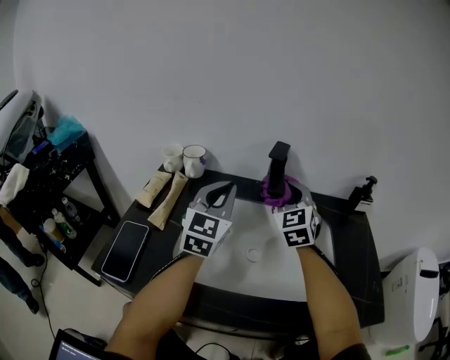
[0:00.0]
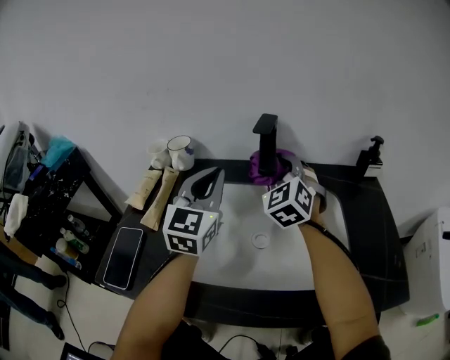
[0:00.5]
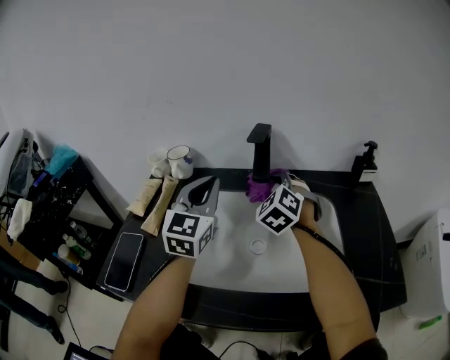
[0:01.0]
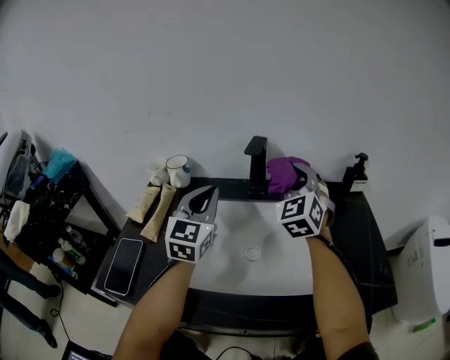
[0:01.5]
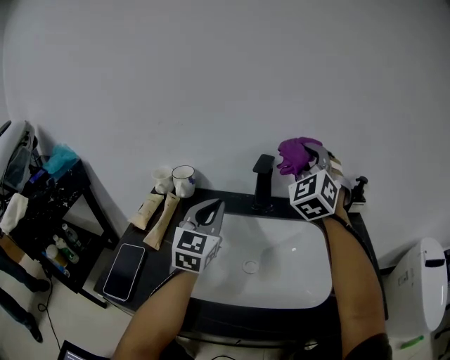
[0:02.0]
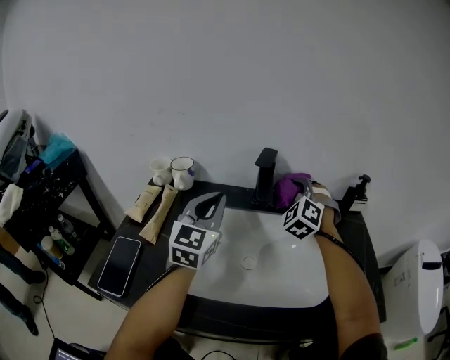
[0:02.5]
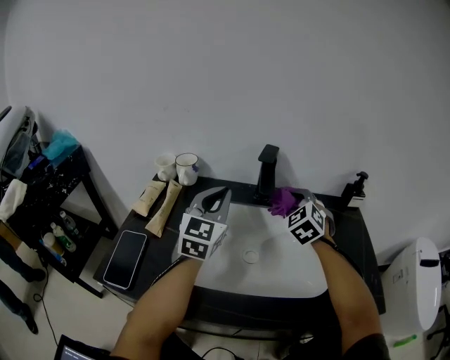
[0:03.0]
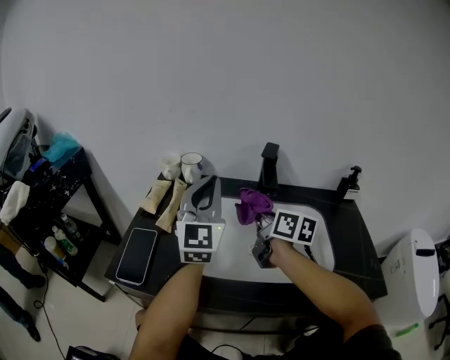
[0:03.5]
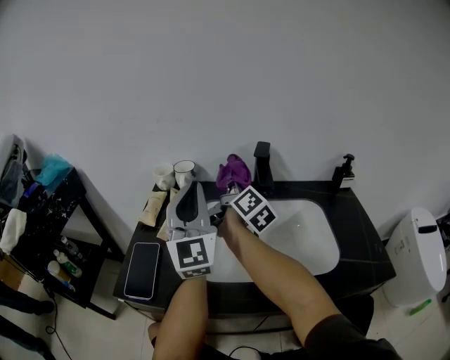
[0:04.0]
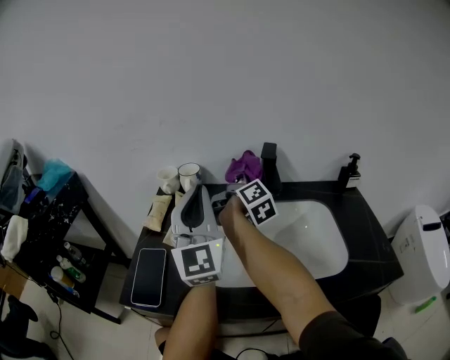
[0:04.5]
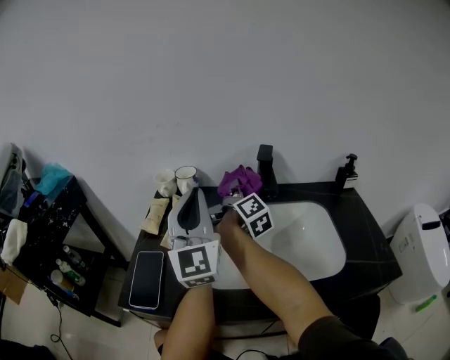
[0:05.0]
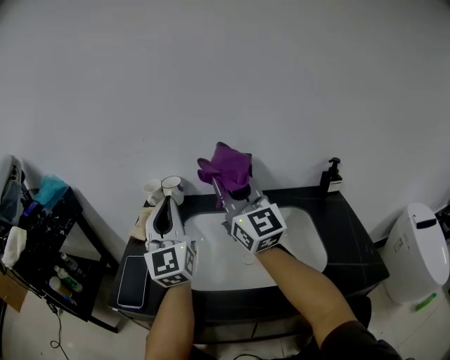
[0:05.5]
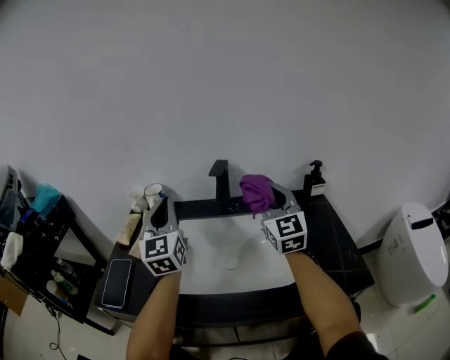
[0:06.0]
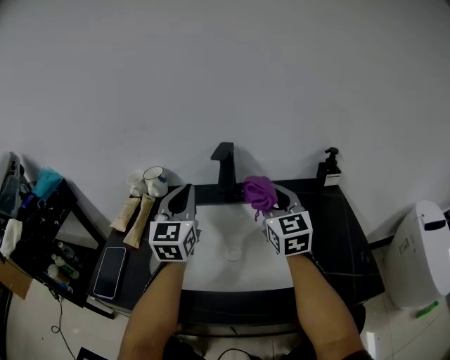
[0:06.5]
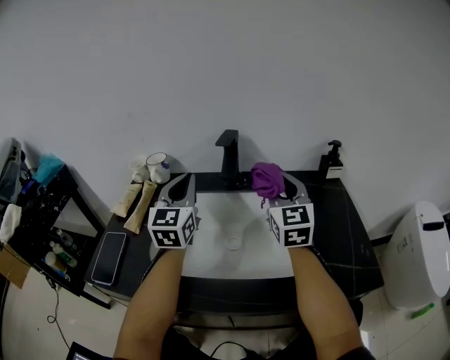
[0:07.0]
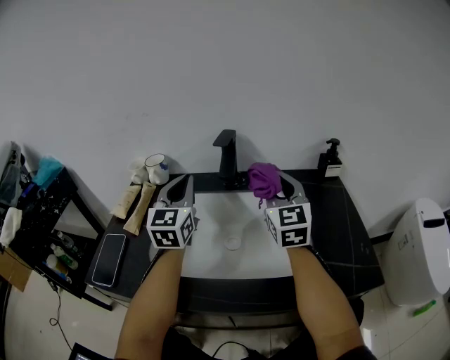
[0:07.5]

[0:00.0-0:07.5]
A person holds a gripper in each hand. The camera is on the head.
0:00.0 to 0:02.0: The right gripper shifts approximately 15 cm upward, and swivels roughly 30 degrees.
0:02.0 to 0:04.0: The left gripper is displaced to the left, backward and upward by roughly 15 cm, and swivels about 30 degrees. The right gripper moves to the left and downward, roughly 20 cm, and rotates around the line of its fingers by some 110 degrees, clockwise from behind.
0:04.0 to 0:05.5: The right gripper shifts some 15 cm upward and backward, and rolls counterclockwise, seen from behind, by approximately 60 degrees.
0:05.5 to 0:07.5: The right gripper heads to the right and downward, covering roughly 25 cm, and rotates approximately 30 degrees. Meanwhile the left gripper goes roughly 15 cm to the right, downward and forward, and rotates approximately 20 degrees.

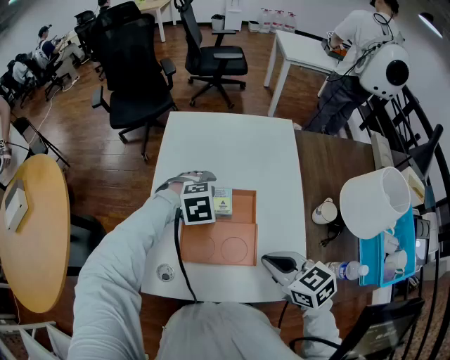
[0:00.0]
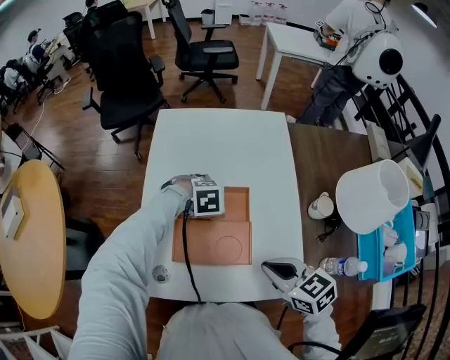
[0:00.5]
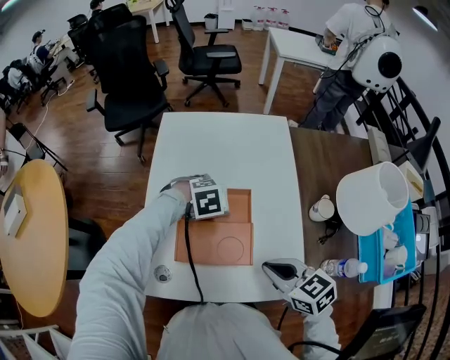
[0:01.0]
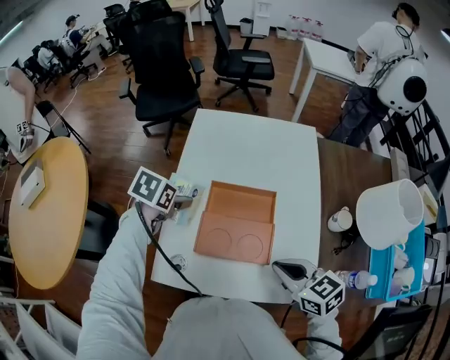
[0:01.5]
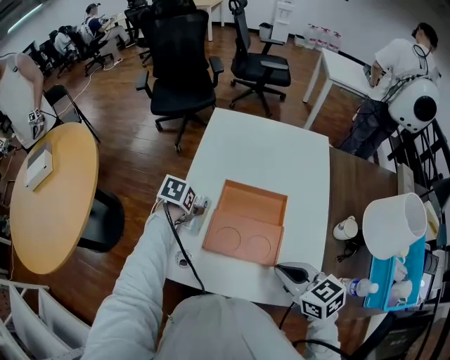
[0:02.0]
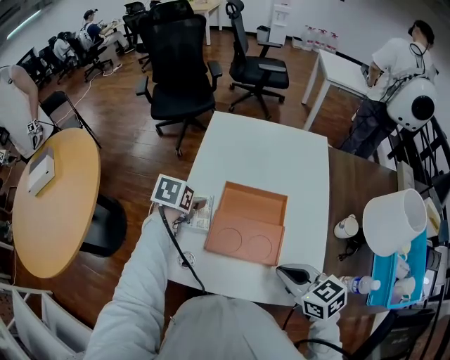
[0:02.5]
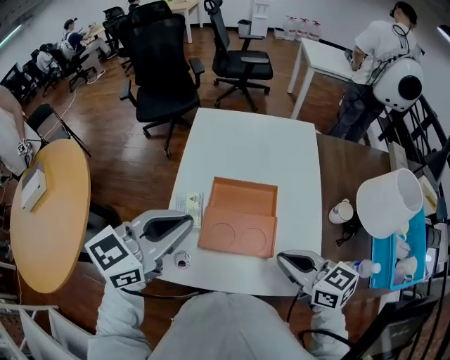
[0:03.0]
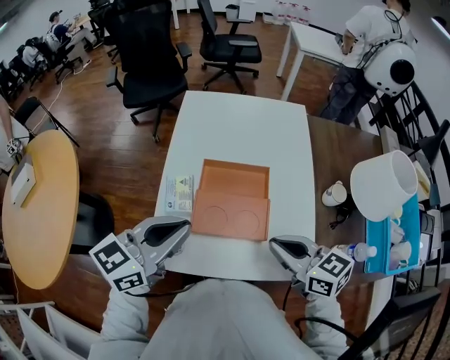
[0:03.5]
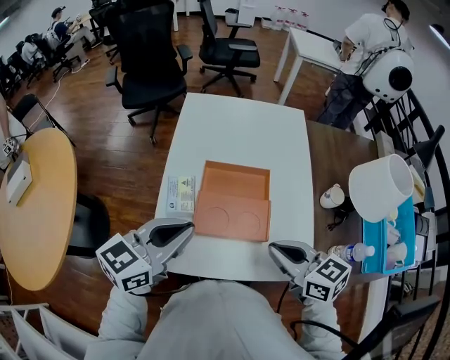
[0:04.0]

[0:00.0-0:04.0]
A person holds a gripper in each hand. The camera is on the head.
0:00.0 to 0:02.0: The left gripper swings up and down, approximately 10 cm each way, with 2 reversals, and twists approximately 80 degrees counterclockwise, seen from behind.
0:02.0 to 0:04.0: The left gripper travels upward and backward by some 25 cm, angles its fingers upward, by about 50 degrees, and closes.

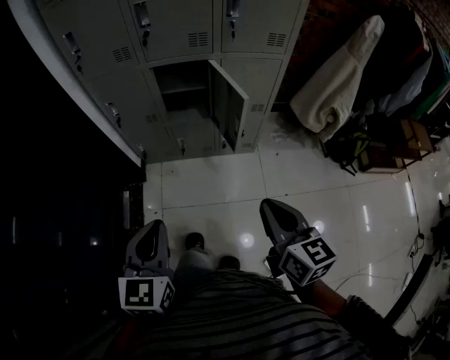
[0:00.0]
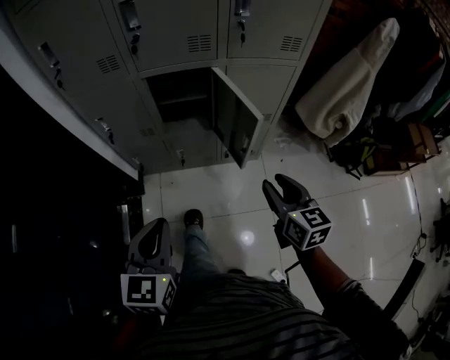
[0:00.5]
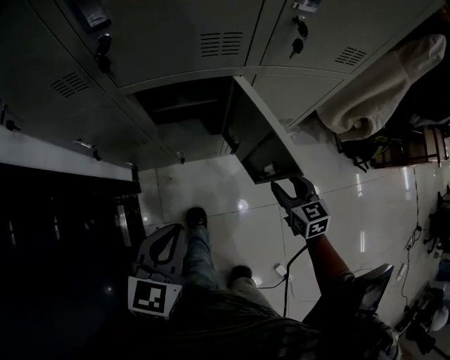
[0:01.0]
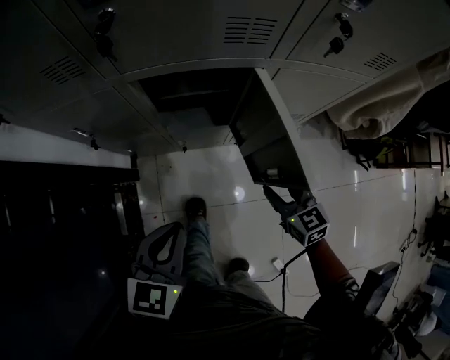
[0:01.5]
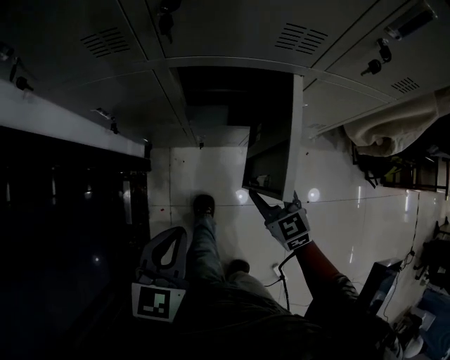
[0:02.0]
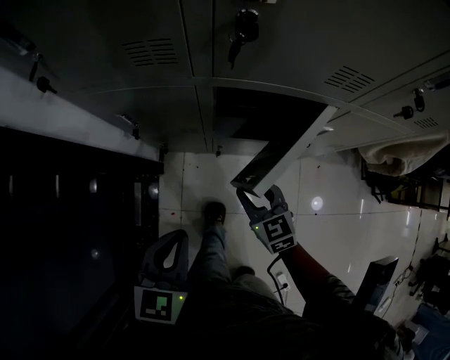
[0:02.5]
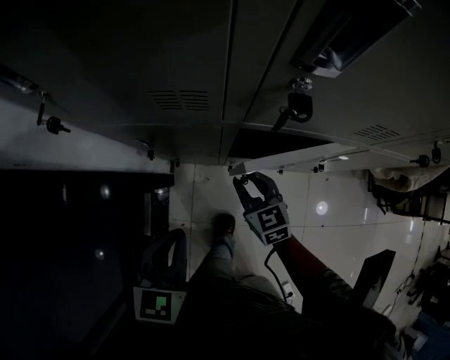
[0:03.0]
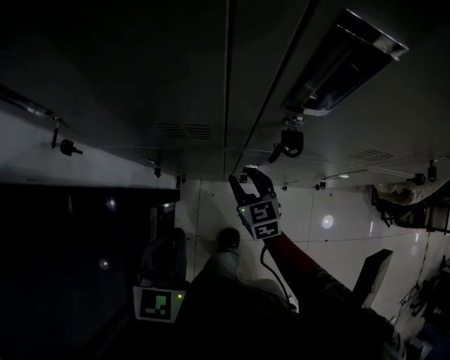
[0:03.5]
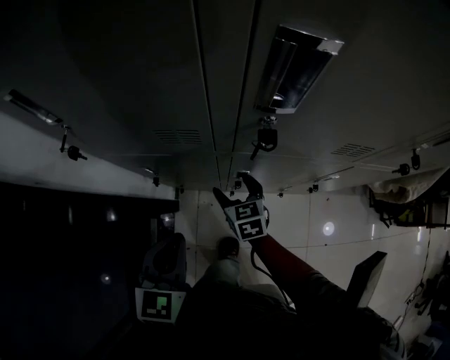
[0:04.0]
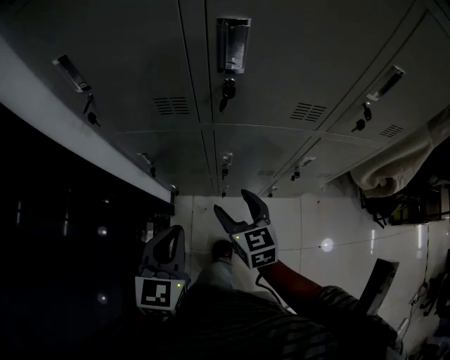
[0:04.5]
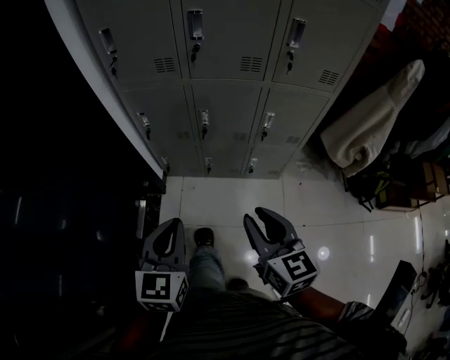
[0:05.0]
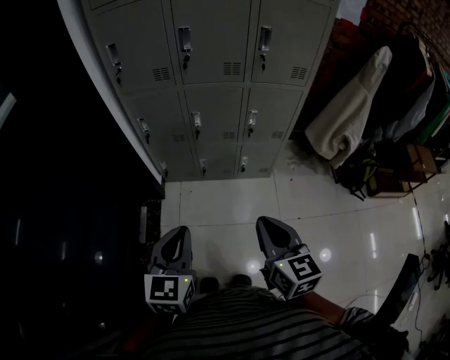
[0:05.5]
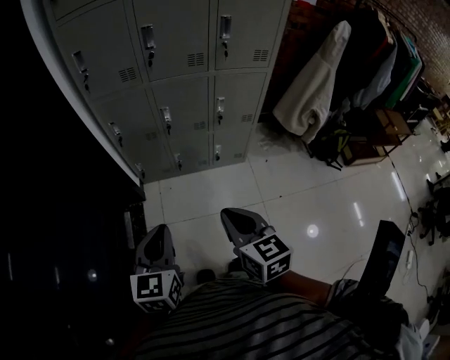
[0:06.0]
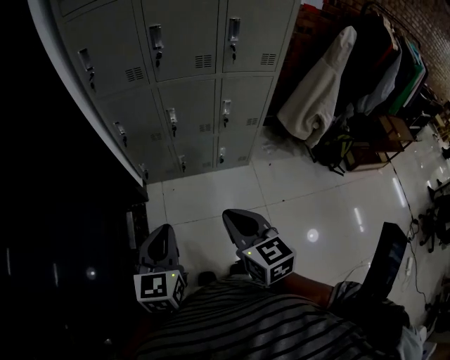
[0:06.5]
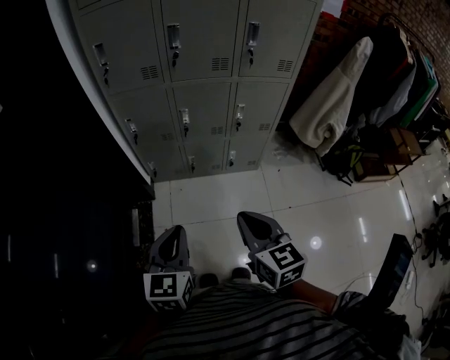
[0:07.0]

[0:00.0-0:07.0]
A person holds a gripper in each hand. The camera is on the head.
0:00.0 to 0:02.0: The grippers both shift forward and downward by about 40 cm. The right gripper turns by some 40 degrees, and opens.
0:02.0 to 0:03.5: The grippers both shift forward and to the left by roughly 25 cm.
0:03.5 to 0:05.0: The right gripper goes about 50 cm backward and upward, and opens and closes again. Meanwhile the left gripper is displaced backward by roughly 35 cm.
0:05.0 to 0:07.0: Both grippers travel together backward, approximately 10 cm.

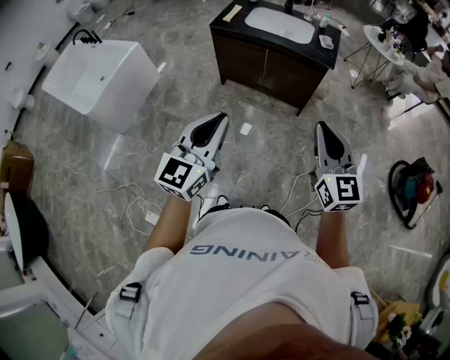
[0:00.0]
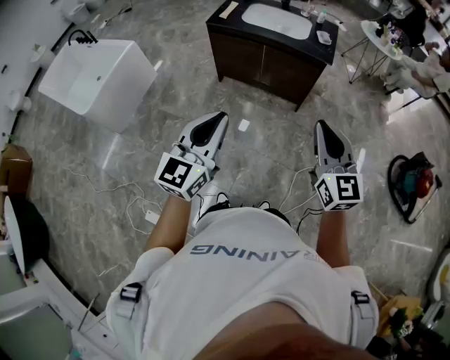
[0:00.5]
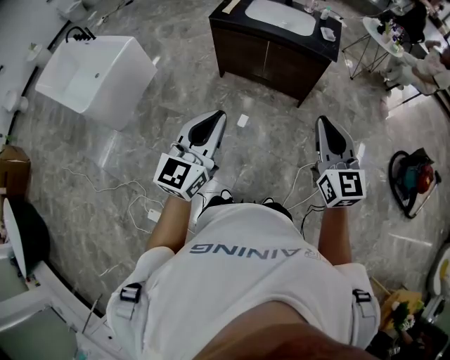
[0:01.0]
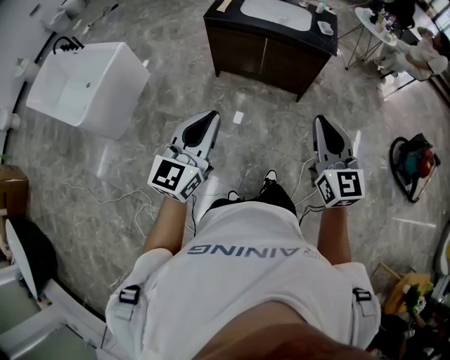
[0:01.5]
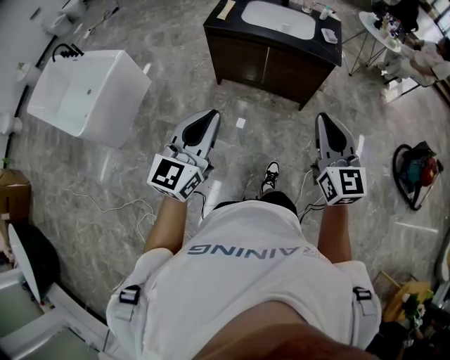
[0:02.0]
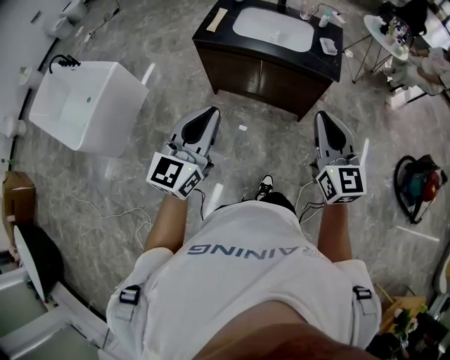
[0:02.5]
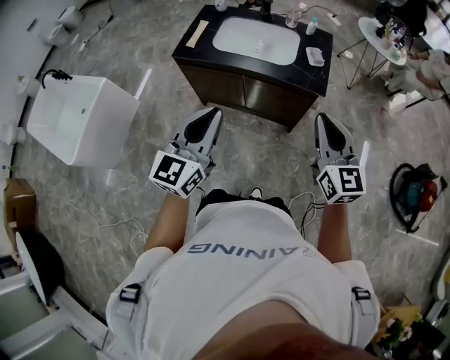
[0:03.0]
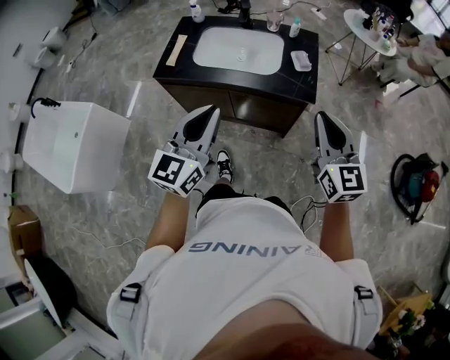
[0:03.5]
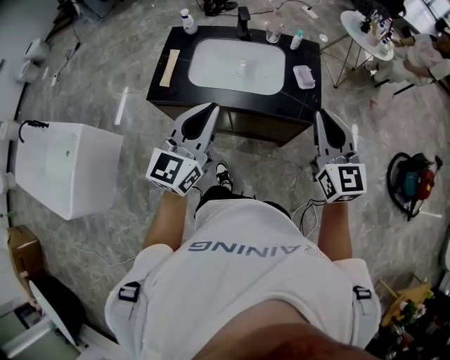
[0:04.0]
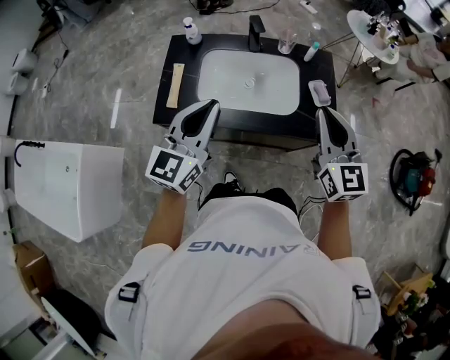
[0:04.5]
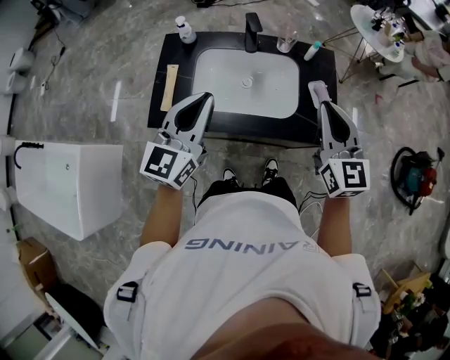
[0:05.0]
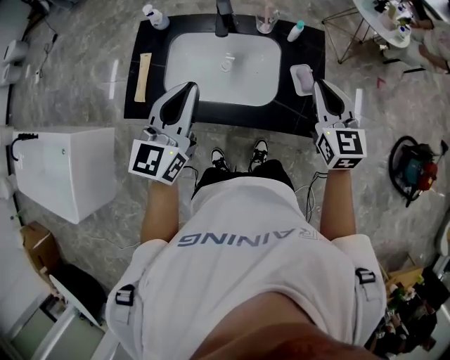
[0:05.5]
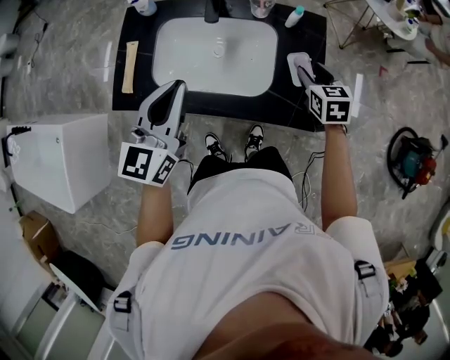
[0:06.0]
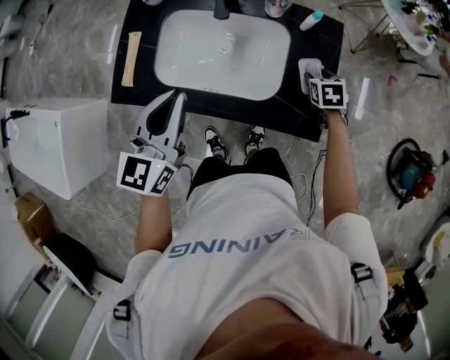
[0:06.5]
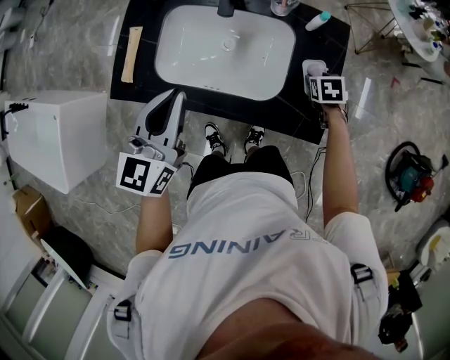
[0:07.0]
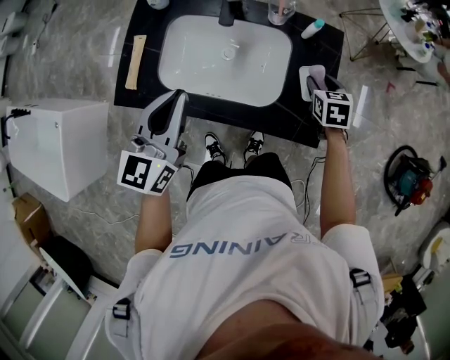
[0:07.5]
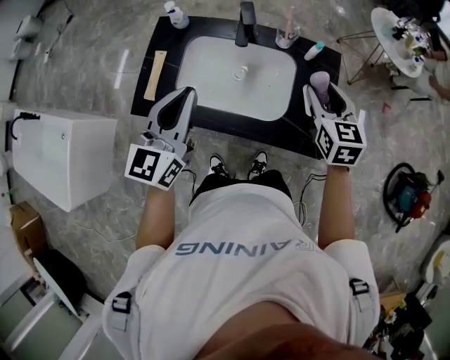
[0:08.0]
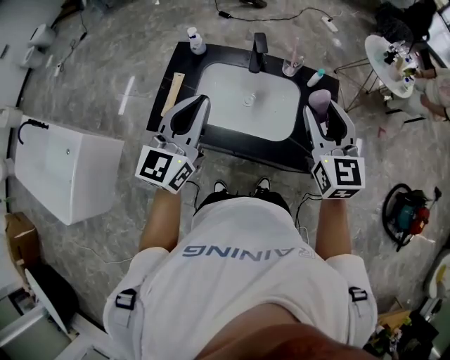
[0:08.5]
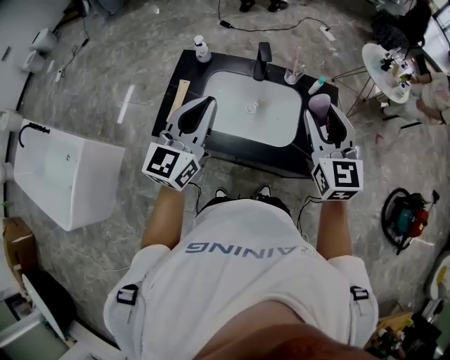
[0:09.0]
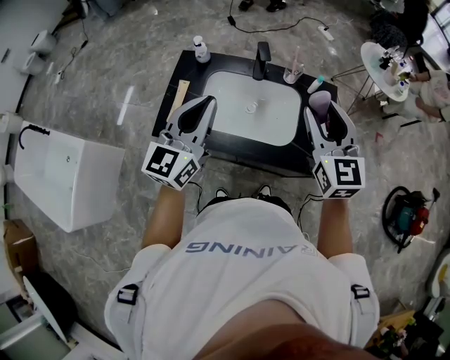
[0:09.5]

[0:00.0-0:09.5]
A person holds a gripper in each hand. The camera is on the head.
0:00.0 to 0:02.0: Both grippers move to the left and forward, about 15 cm.
0:02.0 to 0:04.0: Both grippers are carried forward, approximately 50 cm.
0:04.0 to 0:05.5: The grippers both shift forward by some 25 cm.
0:05.5 to 0:07.5: The right gripper heads downward and forward, covering about 20 cm, tips its fingers downward by approximately 30 degrees, and opens up; the left gripper ends up roughly 5 cm from where it was.
0:07.5 to 0:09.5: The right gripper shifts about 35 cm upward and to the left, and angles its fingers upward, by about 40 degrees; the left gripper shifts some 15 cm upward and to the left.
